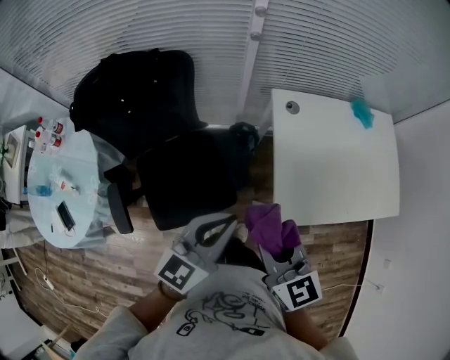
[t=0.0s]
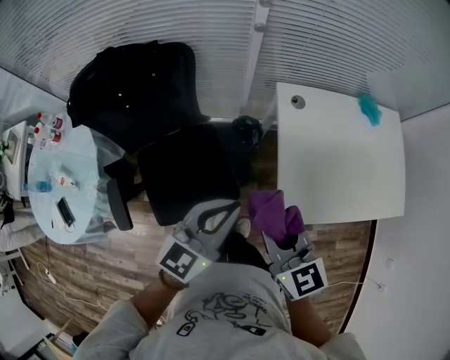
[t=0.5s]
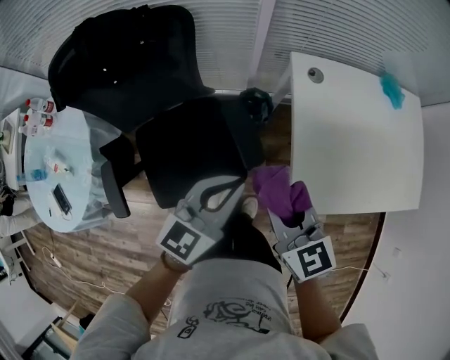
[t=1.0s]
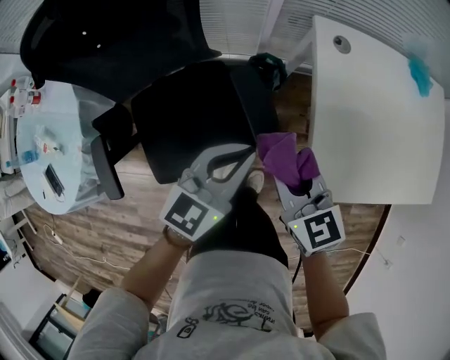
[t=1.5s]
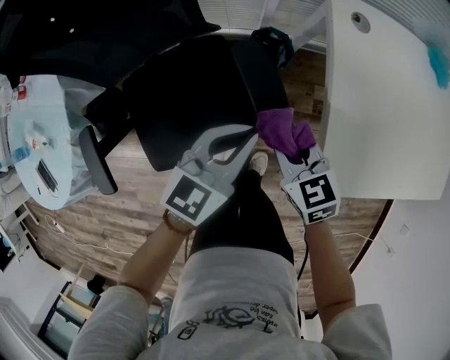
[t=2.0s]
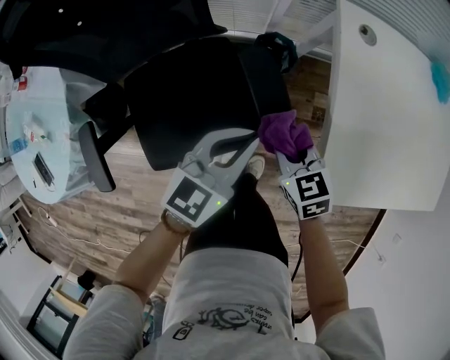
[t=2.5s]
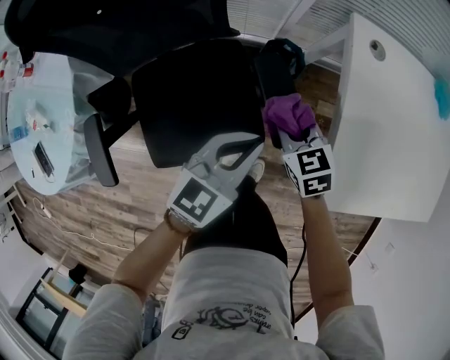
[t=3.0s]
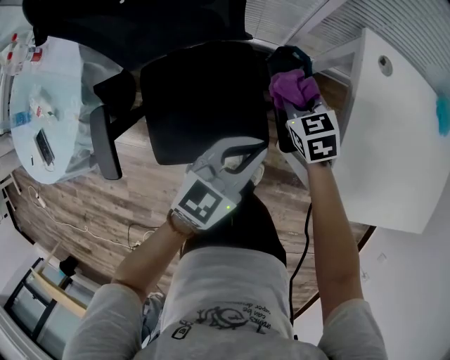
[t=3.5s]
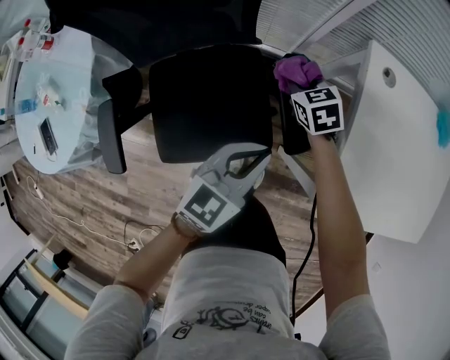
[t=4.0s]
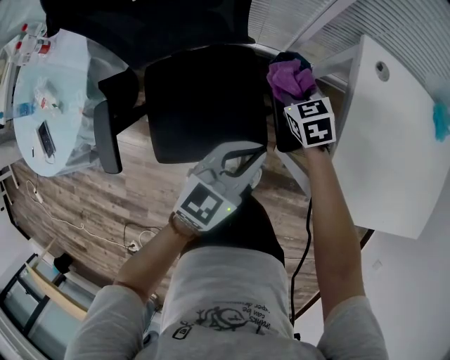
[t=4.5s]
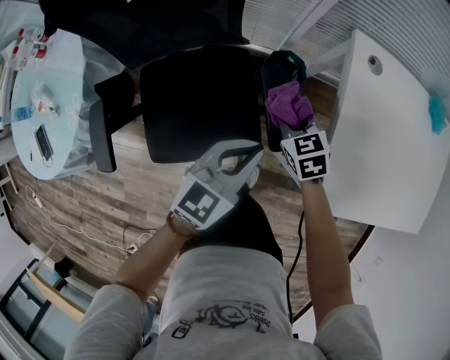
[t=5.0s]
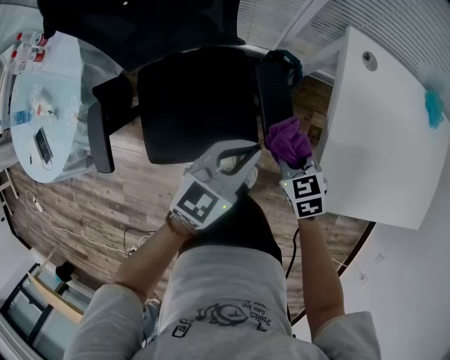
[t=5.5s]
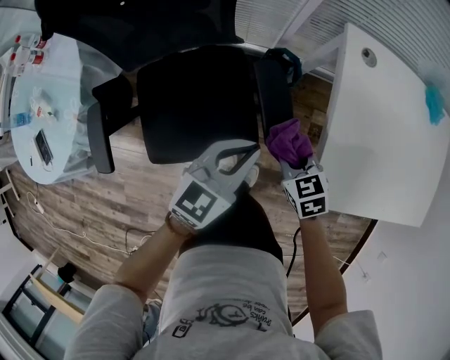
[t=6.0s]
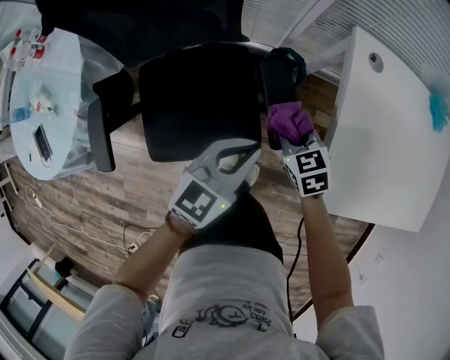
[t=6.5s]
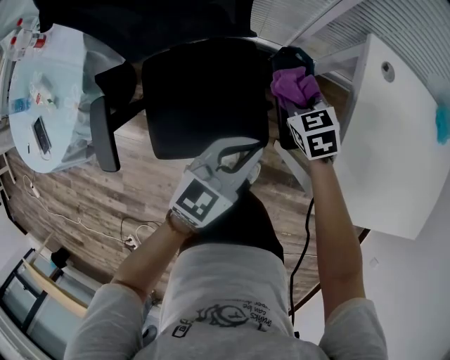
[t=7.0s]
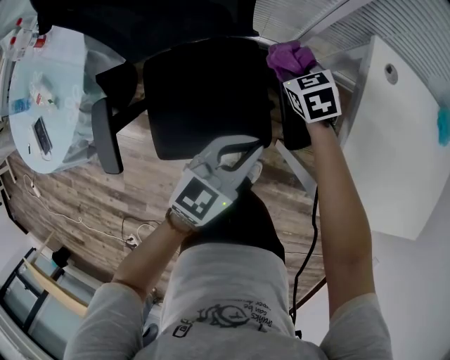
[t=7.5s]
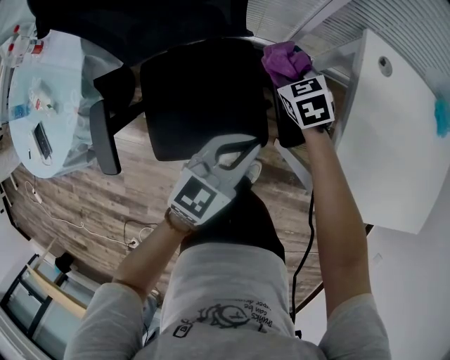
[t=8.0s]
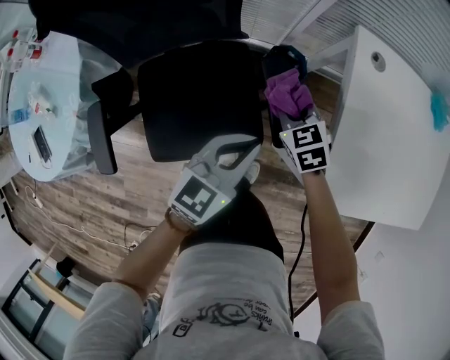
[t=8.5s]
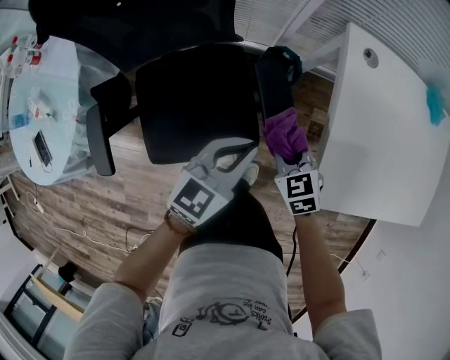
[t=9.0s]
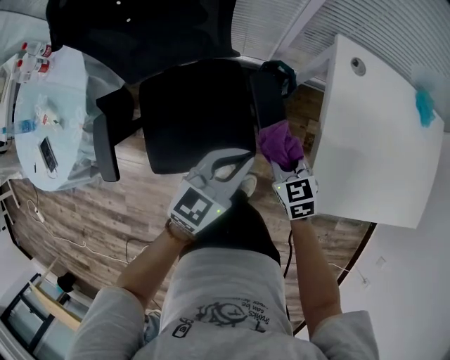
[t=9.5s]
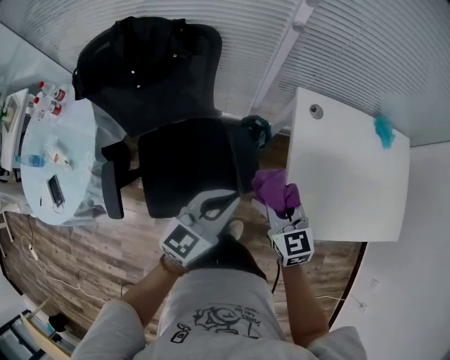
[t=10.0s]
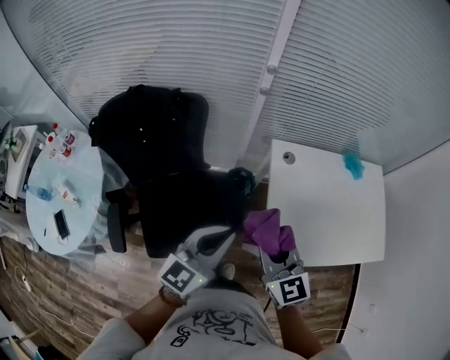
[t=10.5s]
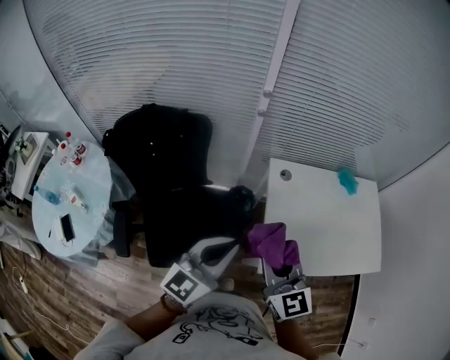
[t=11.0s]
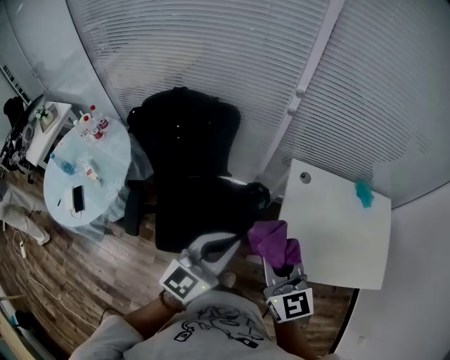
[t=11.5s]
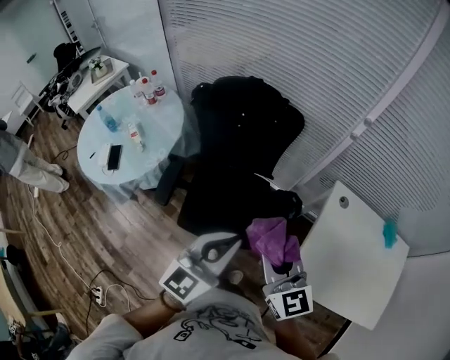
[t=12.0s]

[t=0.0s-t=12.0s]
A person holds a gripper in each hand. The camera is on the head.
t=0.0s to t=2.0s: Both grippers move downward, some 30 cm. The right gripper rotates roughly 30 degrees.
t=2.0s to t=4.0s: The right gripper moves forward and to the left, approximately 20 cm; the left gripper ends up some 5 cm from where it was.
t=4.0s to t=6.0s: The right gripper moves backward and to the right, roughly 20 cm.
t=6.0s to t=8.0s: The right gripper heads forward and to the left, covering some 20 cm.
t=8.0s to t=10.0s: The right gripper goes approximately 30 cm upward, backward and to the right, and changes its angle by roughly 30 degrees; the left gripper travels upward by approximately 15 cm.
t=10.0s to t=12.0s: The two grippers go some 20 cm upward. The left gripper swivels approximately 30 degrees, while the right gripper changes its angle by some 30 degrees.

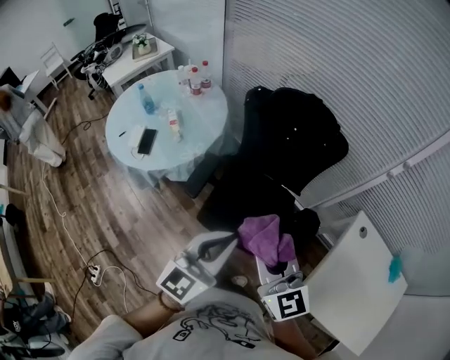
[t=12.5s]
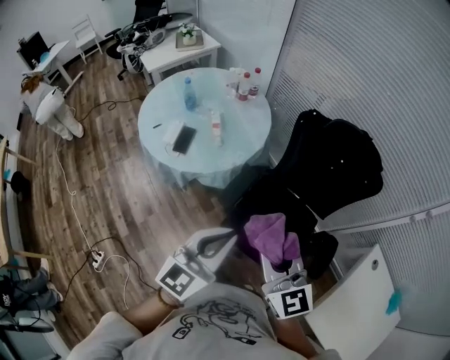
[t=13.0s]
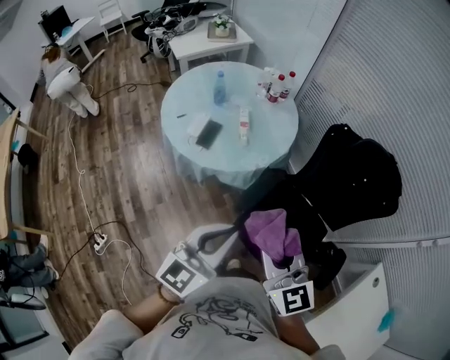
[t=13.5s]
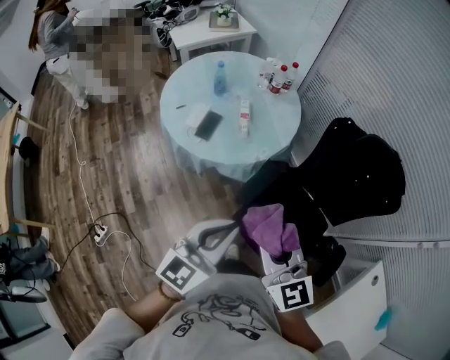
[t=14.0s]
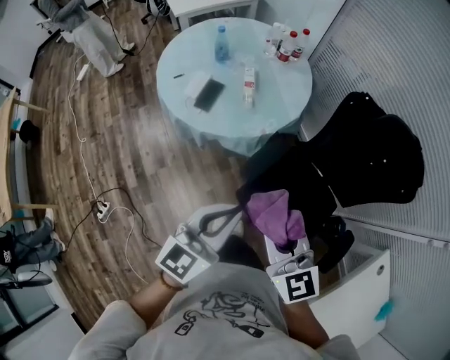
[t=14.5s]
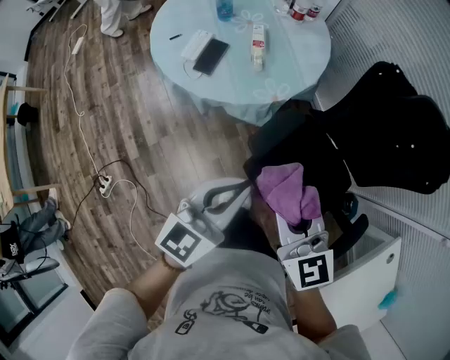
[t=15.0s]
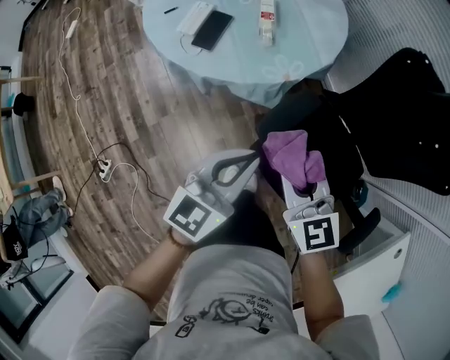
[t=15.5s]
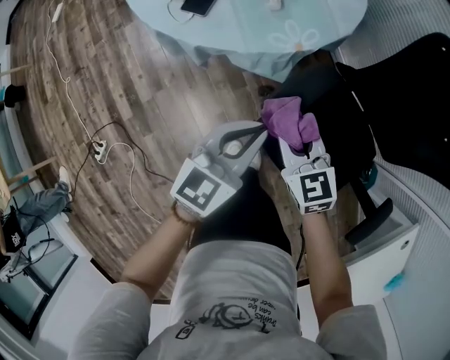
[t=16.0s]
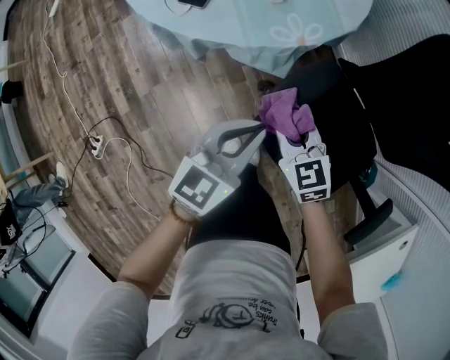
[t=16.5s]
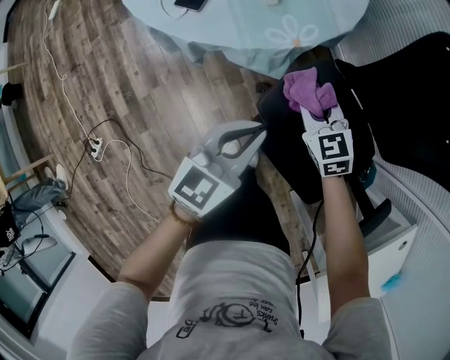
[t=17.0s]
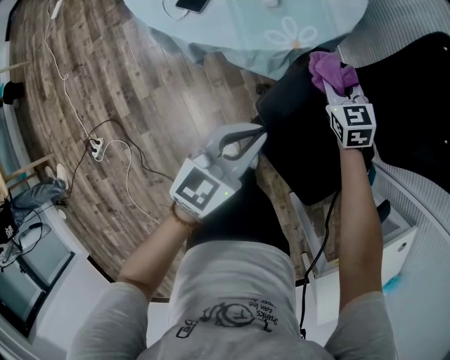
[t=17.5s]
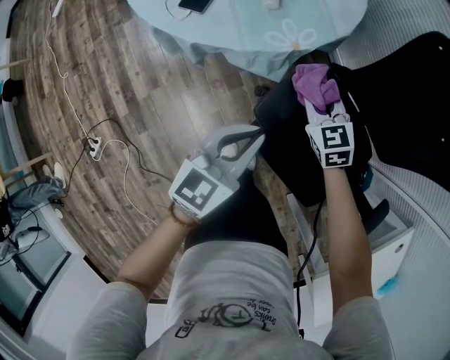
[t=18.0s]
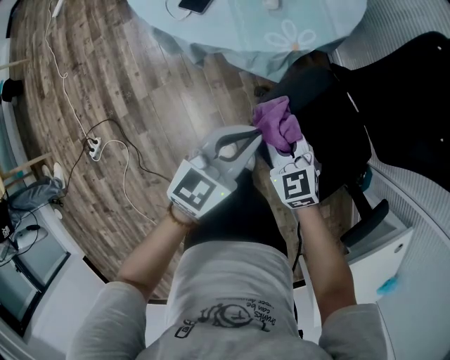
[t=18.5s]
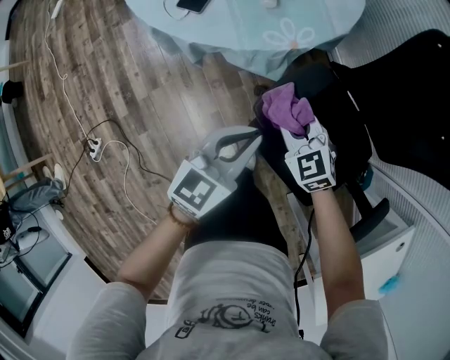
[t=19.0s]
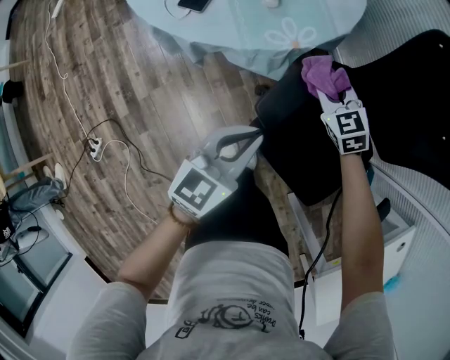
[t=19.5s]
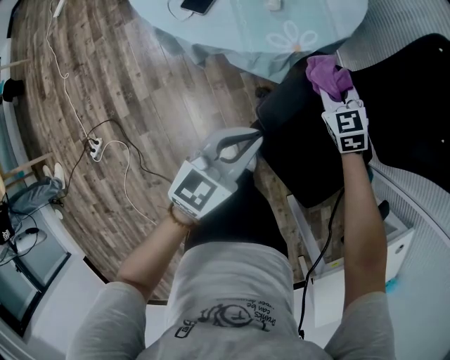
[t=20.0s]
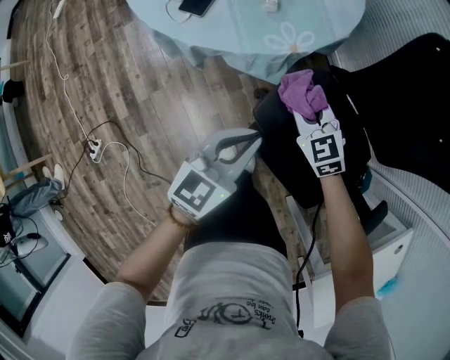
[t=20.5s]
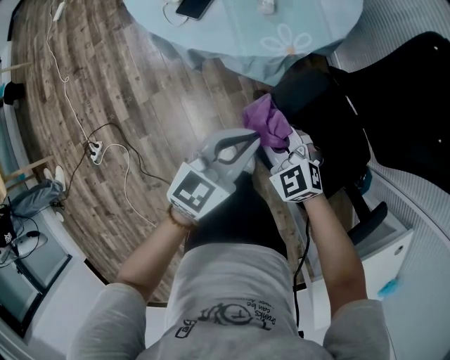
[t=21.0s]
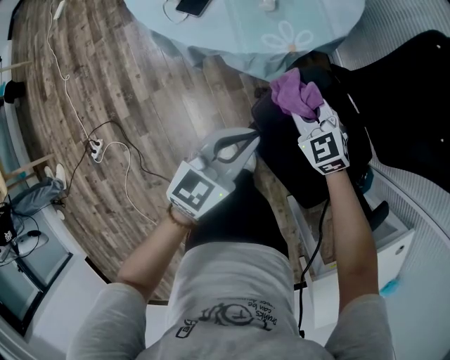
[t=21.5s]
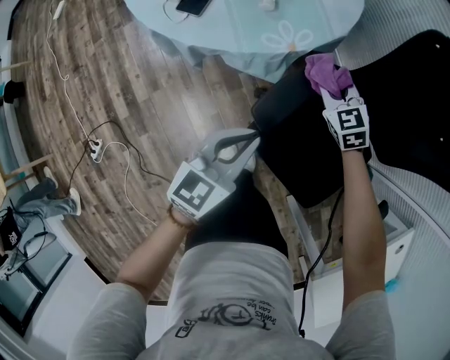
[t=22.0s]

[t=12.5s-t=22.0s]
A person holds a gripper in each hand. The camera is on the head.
t=12.5s to t=14.5s: The left gripper goes about 25 cm to the left and forward, and swivels some 20 degrees. Meanwhile the right gripper moves to the left, forward and downward, about 25 cm, and turns by about 20 degrees.
t=14.5s to t=16.5s: Both grippers travel together downward, about 35 cm. The right gripper rotates some 20 degrees.
t=16.5s to t=18.0s: The right gripper heads forward and to the right, covering approximately 10 cm.
t=18.0s to t=20.0s: The right gripper moves roughly 10 cm backward and comes back.
t=20.0s to t=22.0s: The right gripper reaches roughly 15 cm backward, then returns.

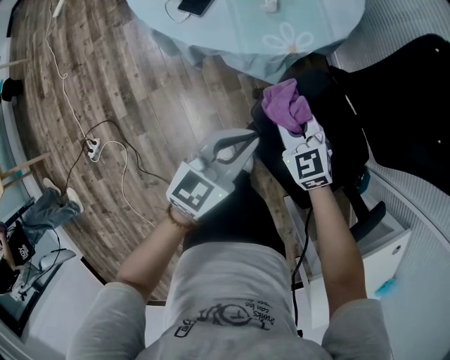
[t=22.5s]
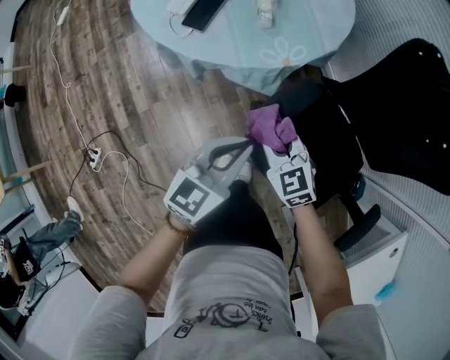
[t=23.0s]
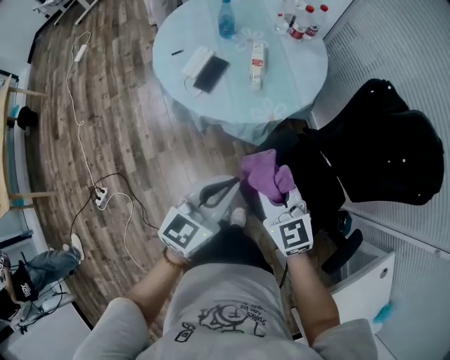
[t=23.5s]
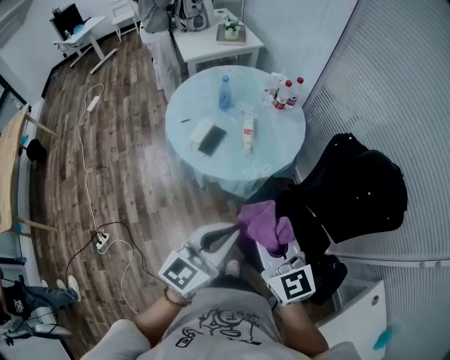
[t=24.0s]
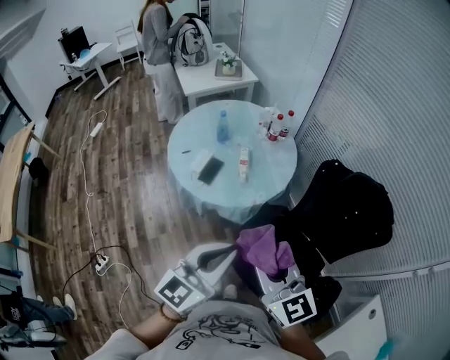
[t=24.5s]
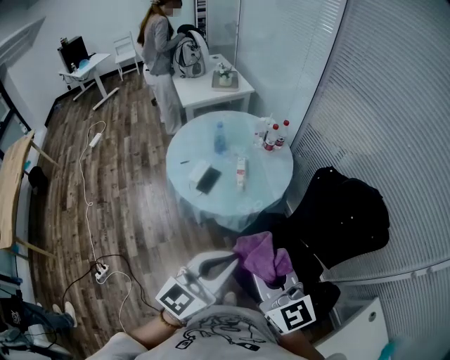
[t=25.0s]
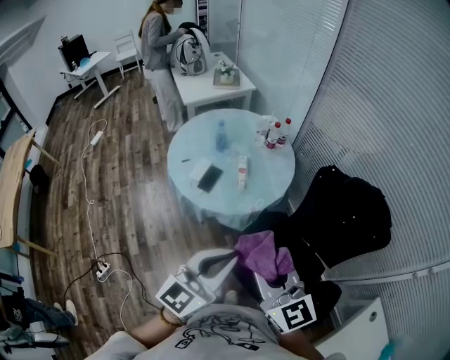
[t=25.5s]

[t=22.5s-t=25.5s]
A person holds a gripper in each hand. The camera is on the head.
t=22.5s to t=24.0s: Both grippers travel together upward, roughly 40 cm. The right gripper swivels roughly 30 degrees.
t=24.0s to t=25.5s: Both grippers travel together upward, approximately 10 cm.

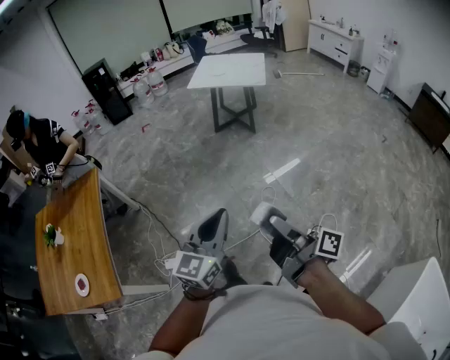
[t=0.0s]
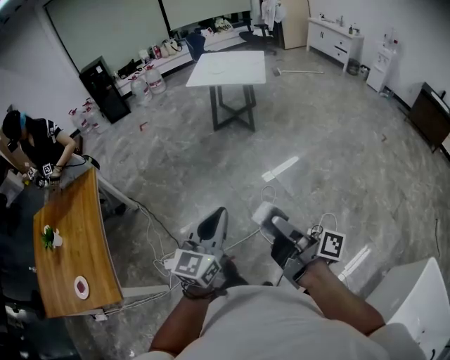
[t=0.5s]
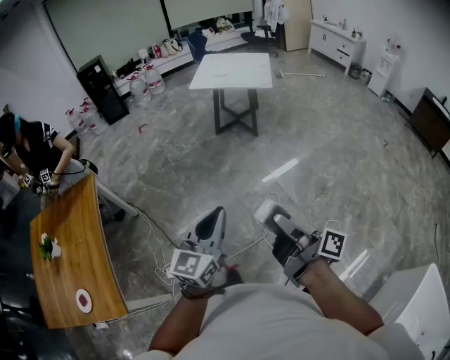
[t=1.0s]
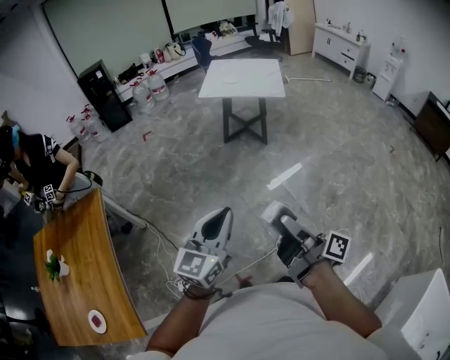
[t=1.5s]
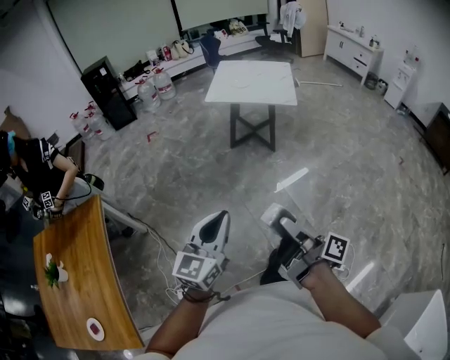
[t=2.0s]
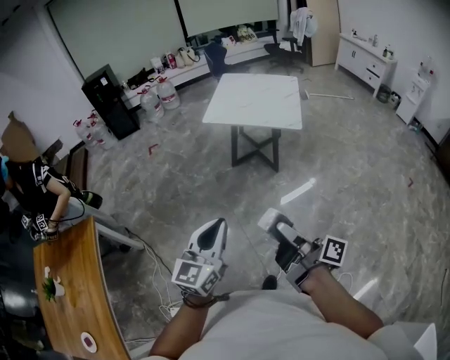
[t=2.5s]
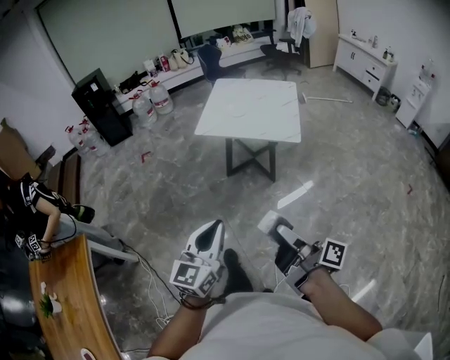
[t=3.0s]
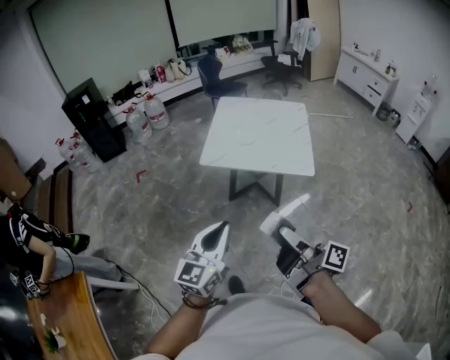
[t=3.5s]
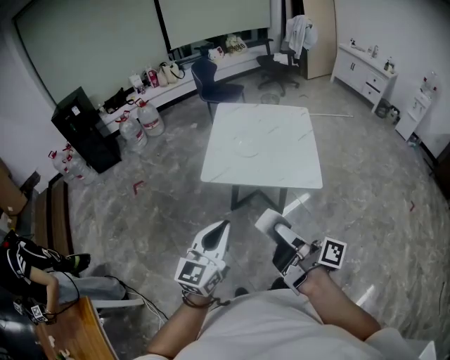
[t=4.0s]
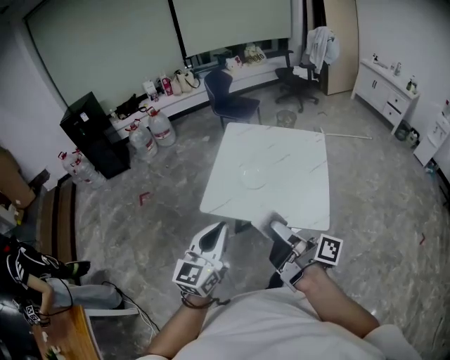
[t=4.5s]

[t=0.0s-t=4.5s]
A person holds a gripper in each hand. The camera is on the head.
t=0.0s to t=2.0s: The left gripper shifts by roughly 40 cm.
t=2.0s to t=4.5s: The left gripper ends up some 90 cm from where it was.
